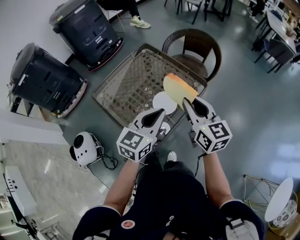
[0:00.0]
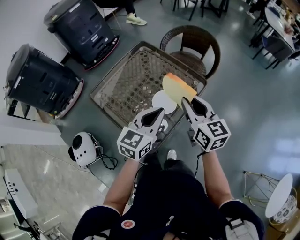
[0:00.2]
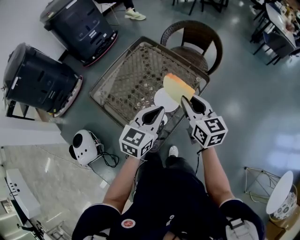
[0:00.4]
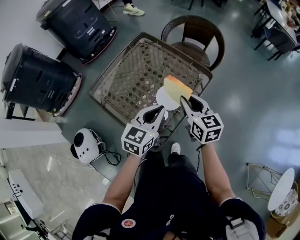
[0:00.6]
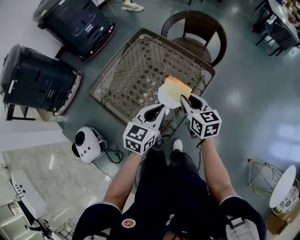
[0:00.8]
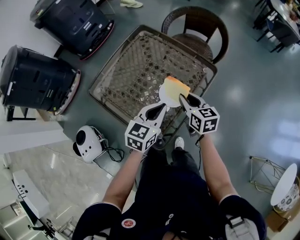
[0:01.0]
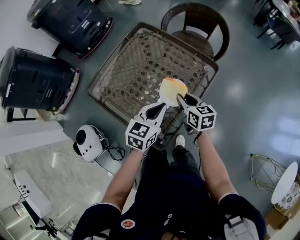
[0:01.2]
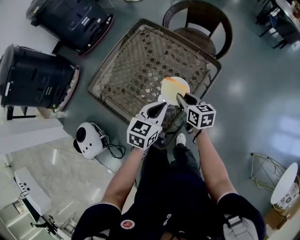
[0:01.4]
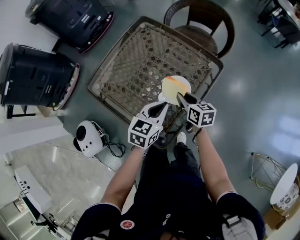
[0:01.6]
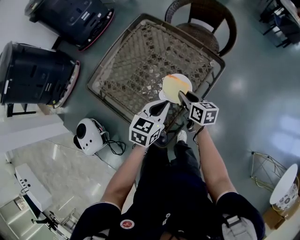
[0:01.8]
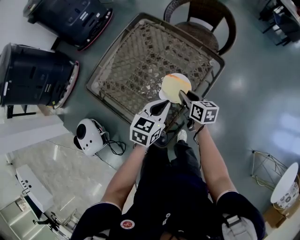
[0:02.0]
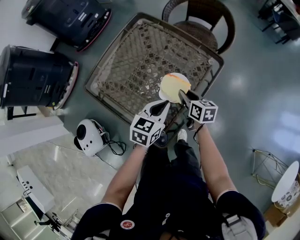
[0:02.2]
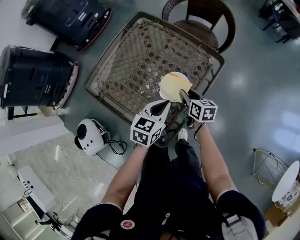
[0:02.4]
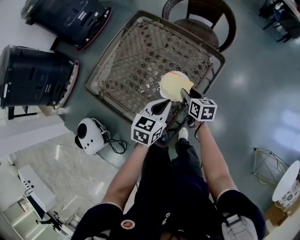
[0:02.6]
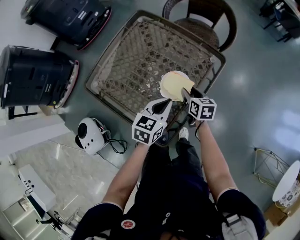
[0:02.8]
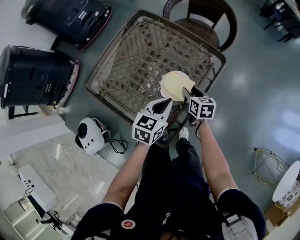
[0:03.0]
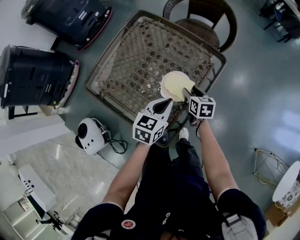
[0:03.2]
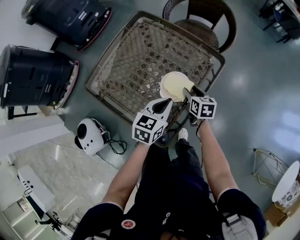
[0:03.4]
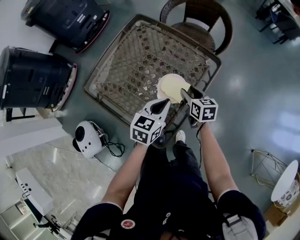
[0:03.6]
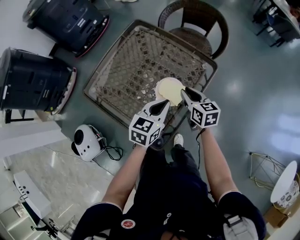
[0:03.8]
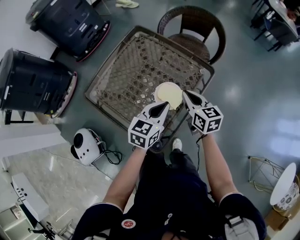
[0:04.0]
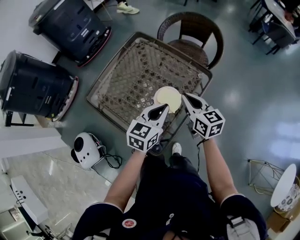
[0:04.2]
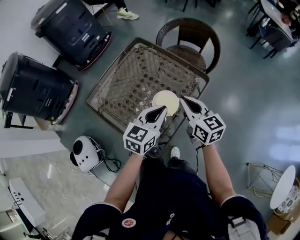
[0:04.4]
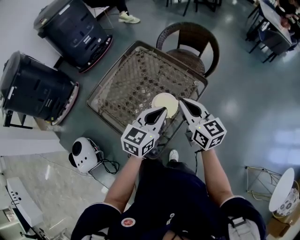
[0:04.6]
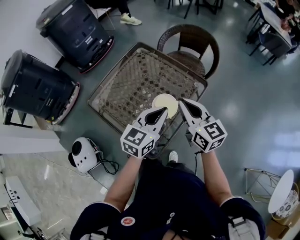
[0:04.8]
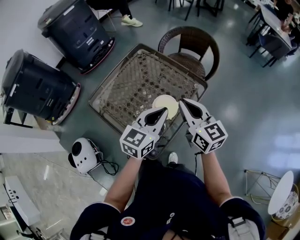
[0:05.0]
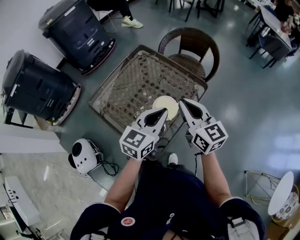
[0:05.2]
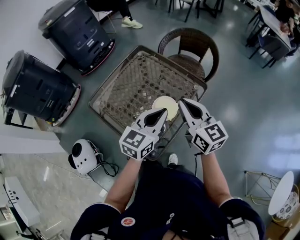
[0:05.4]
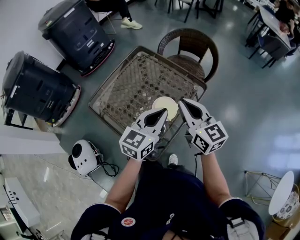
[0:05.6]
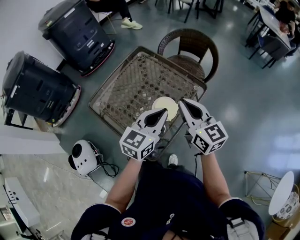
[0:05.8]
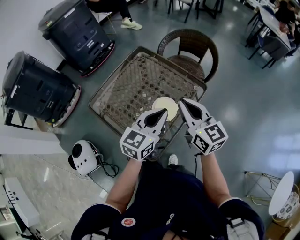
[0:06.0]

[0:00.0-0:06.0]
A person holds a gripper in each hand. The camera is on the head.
0:00.0 to 0:01.6: The left gripper shifts approximately 15 cm downward; the right gripper is displaced downward by about 25 cm, and rotates roughly 30 degrees.
0:01.6 to 0:03.0: The right gripper goes some 5 cm downward, and opens its fingers.
0:03.0 to 0:04.4: The left gripper goes about 10 cm upward; the right gripper goes approximately 25 cm upward, swivels approximately 30 degrees, and closes its fingers.
0:04.4 to 0:06.0: Both grippers move upward, about 10 cm.

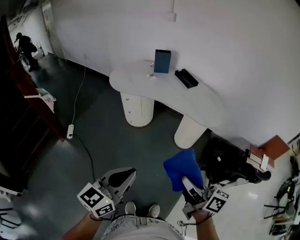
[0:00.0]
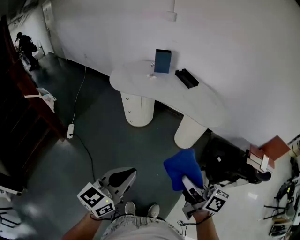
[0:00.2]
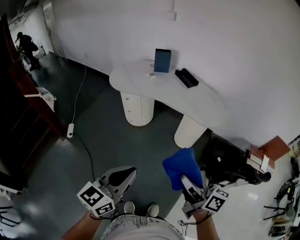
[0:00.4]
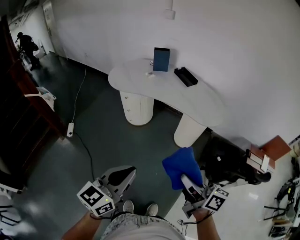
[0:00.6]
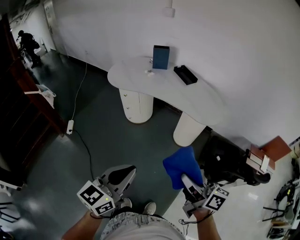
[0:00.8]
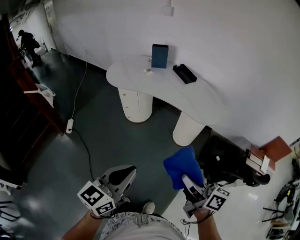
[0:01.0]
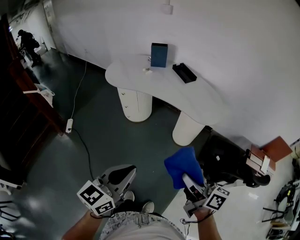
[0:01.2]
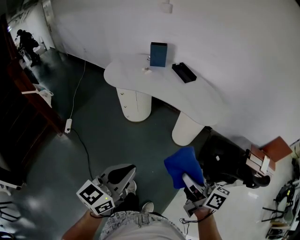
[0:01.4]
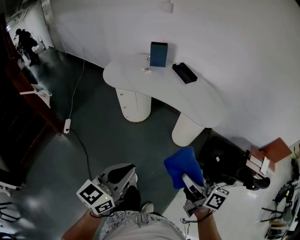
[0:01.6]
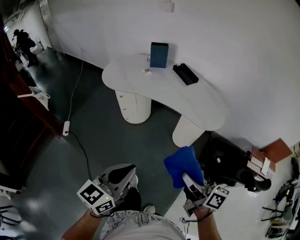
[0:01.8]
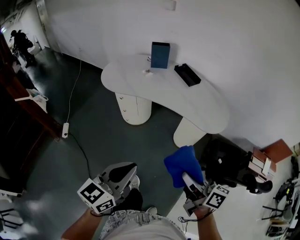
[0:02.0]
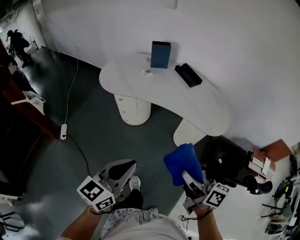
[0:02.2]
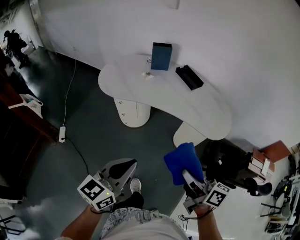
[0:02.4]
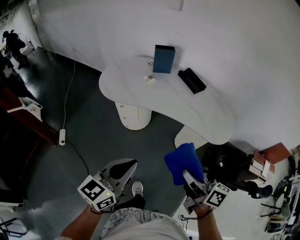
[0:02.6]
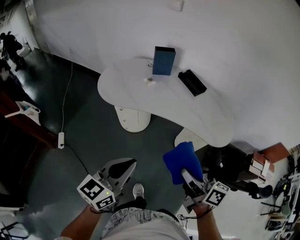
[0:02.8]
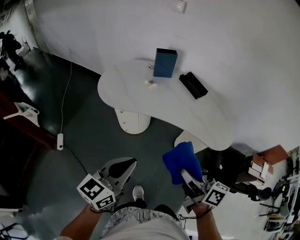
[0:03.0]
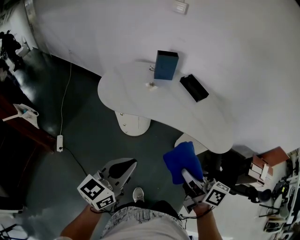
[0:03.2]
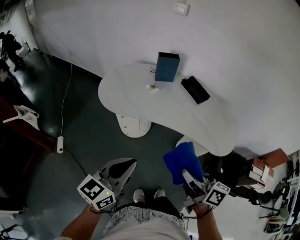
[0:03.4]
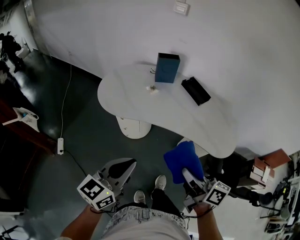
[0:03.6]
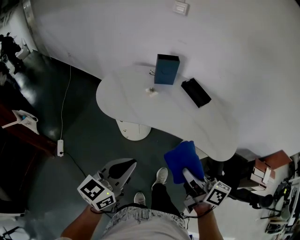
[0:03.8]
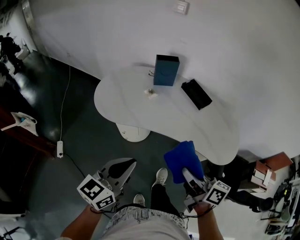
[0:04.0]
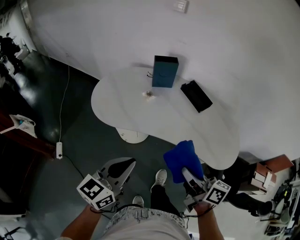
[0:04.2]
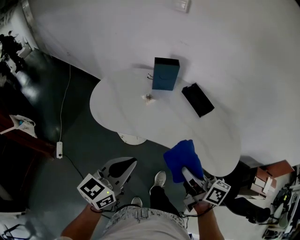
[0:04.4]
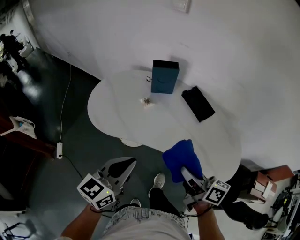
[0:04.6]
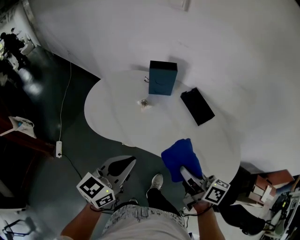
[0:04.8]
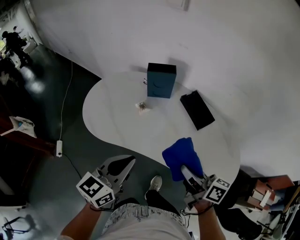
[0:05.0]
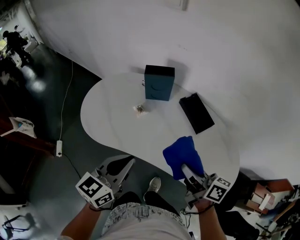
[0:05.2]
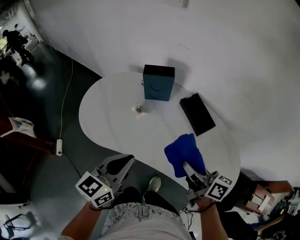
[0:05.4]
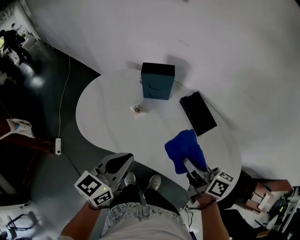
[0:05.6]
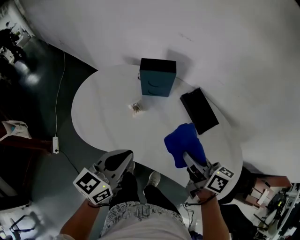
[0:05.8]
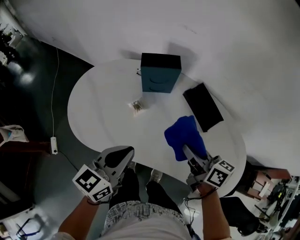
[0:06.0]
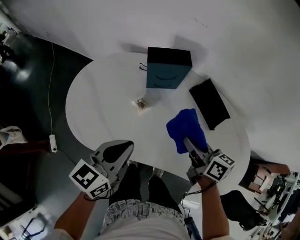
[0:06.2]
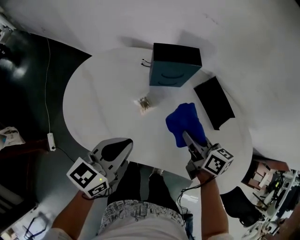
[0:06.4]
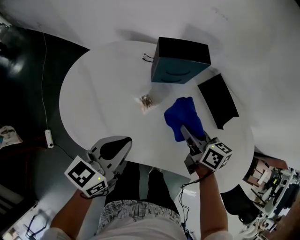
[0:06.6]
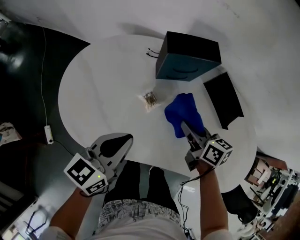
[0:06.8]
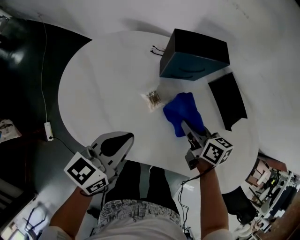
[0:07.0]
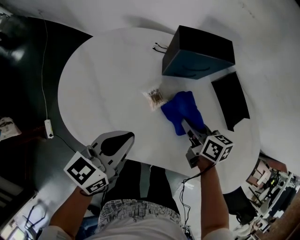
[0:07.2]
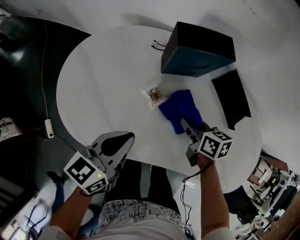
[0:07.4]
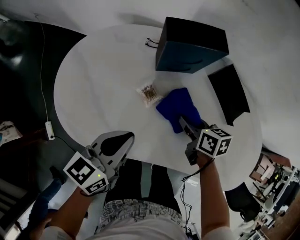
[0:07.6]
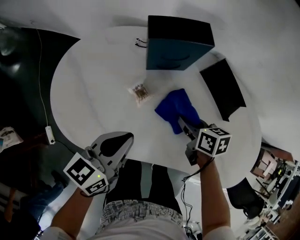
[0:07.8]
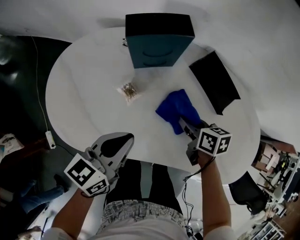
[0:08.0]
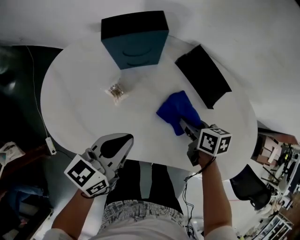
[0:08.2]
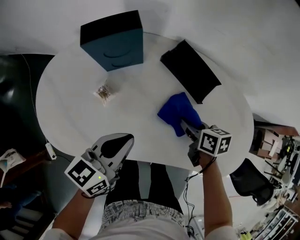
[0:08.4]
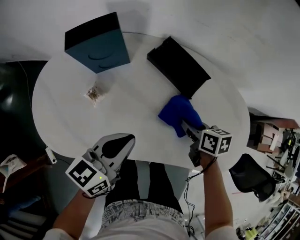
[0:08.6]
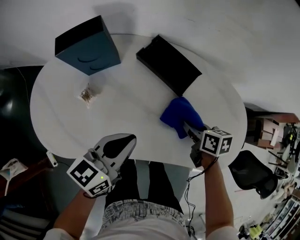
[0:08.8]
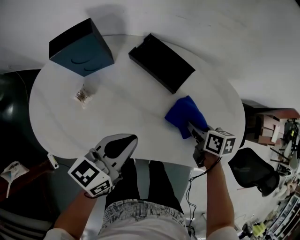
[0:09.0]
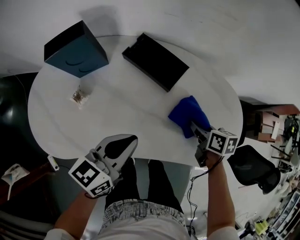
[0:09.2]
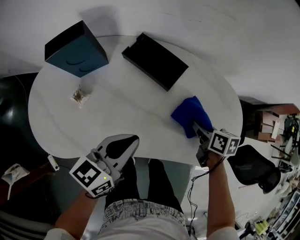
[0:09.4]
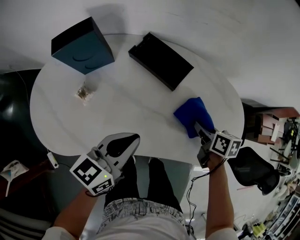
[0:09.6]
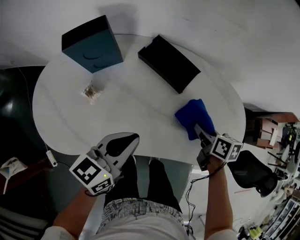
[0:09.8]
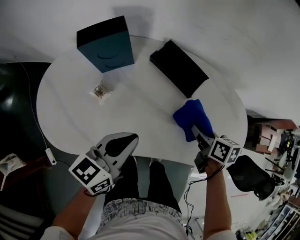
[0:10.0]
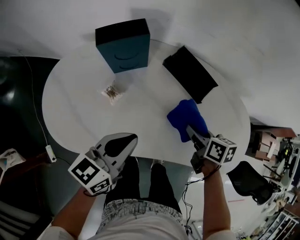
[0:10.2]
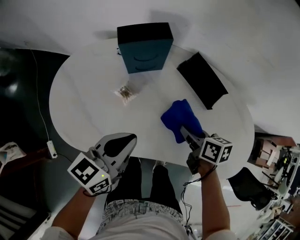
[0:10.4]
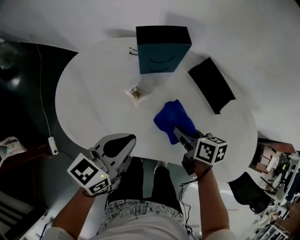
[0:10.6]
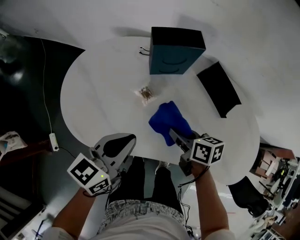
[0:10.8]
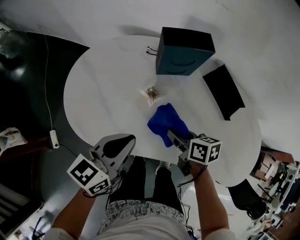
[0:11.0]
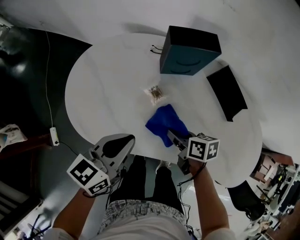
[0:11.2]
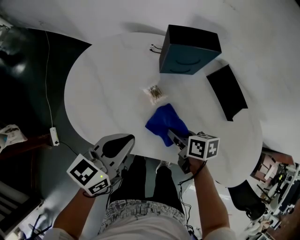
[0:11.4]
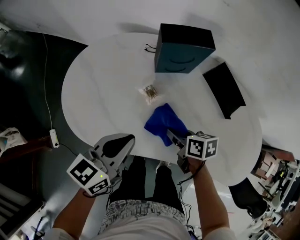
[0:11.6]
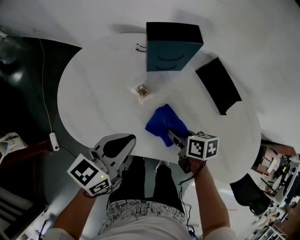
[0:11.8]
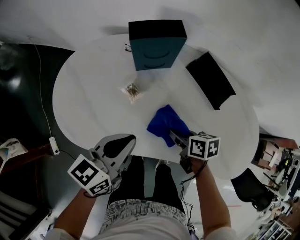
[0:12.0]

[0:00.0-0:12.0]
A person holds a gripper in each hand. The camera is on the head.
0:00.0 to 0:01.6: Both grippers travel together to the right and forward, approximately 10 cm.
0:01.6 to 0:03.0: The two grippers go about 25 cm forward and to the left.
0:03.0 to 0:04.4: Both grippers travel together forward, about 20 cm.
0:04.4 to 0:06.0: Both grippers move forward, about 25 cm.
0:06.0 to 0:07.6: The left gripper moves downward, forward and to the left, roughly 15 cm; the right gripper travels downward, forward and to the left by roughly 20 cm, and swivels some 30 degrees.
0:07.6 to 0:09.0: The two grippers go about 25 cm to the right. The right gripper turns by approximately 20 degrees.
0:09.0 to 0:10.4: The two grippers go roughly 15 cm to the left.
0:10.4 to 0:12.0: The right gripper goes some 10 cm to the left and downward. The left gripper travels to the left and back again, some 10 cm each way.

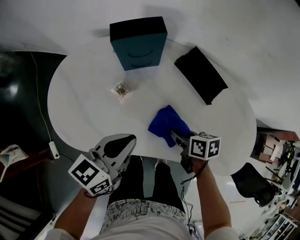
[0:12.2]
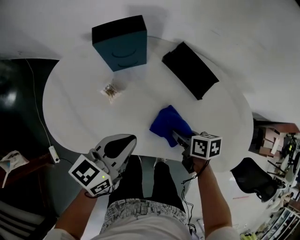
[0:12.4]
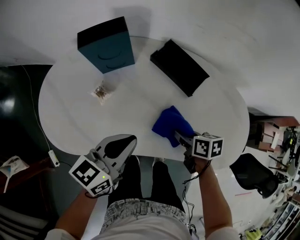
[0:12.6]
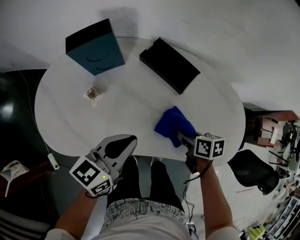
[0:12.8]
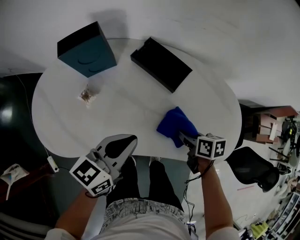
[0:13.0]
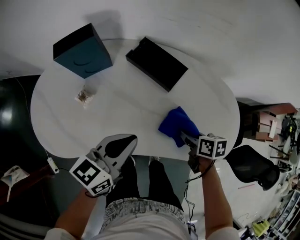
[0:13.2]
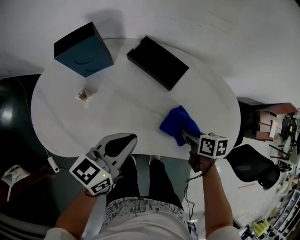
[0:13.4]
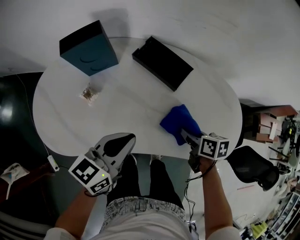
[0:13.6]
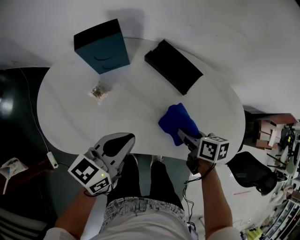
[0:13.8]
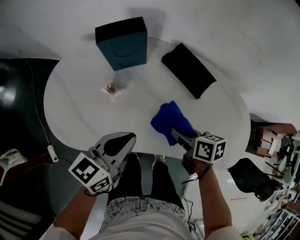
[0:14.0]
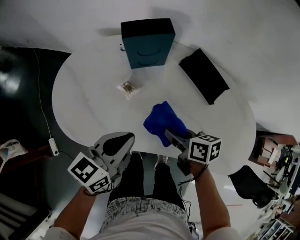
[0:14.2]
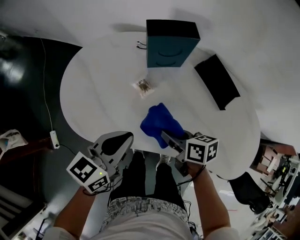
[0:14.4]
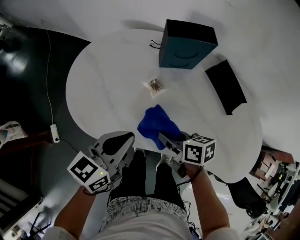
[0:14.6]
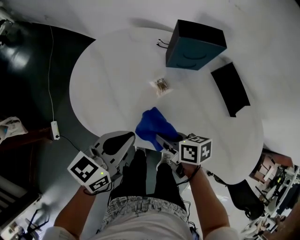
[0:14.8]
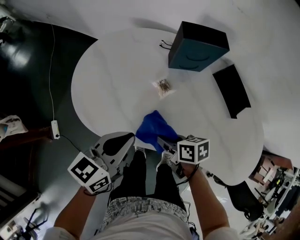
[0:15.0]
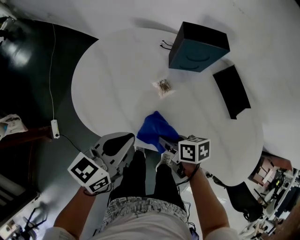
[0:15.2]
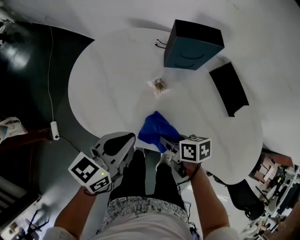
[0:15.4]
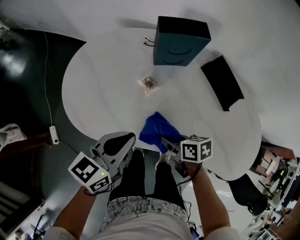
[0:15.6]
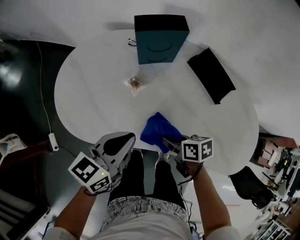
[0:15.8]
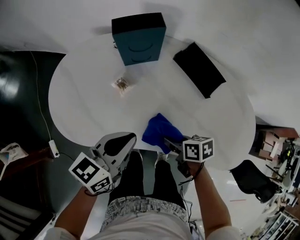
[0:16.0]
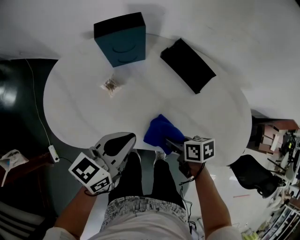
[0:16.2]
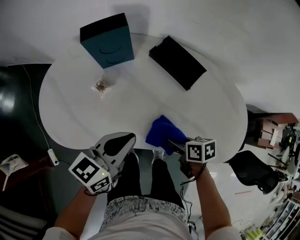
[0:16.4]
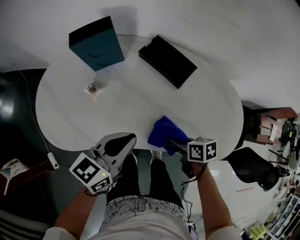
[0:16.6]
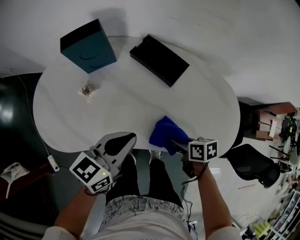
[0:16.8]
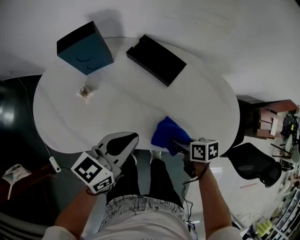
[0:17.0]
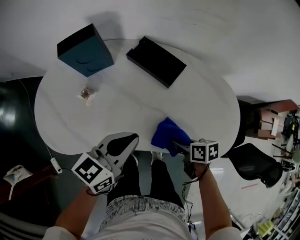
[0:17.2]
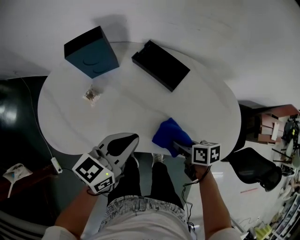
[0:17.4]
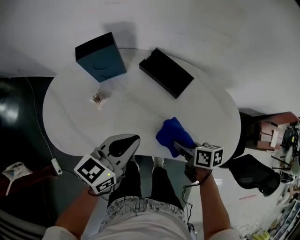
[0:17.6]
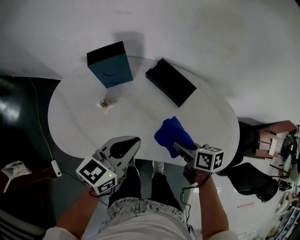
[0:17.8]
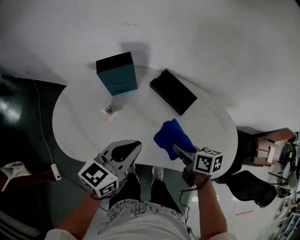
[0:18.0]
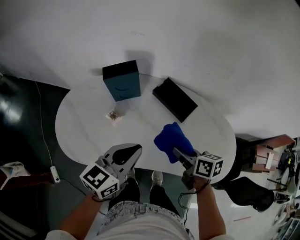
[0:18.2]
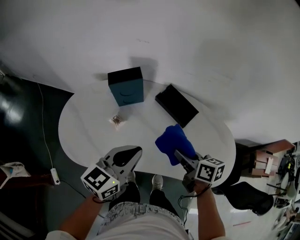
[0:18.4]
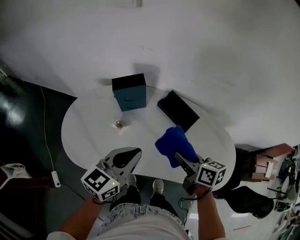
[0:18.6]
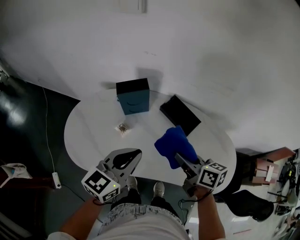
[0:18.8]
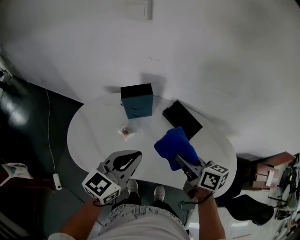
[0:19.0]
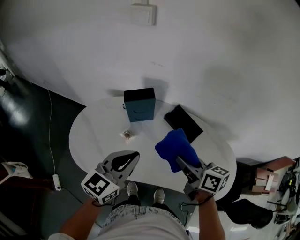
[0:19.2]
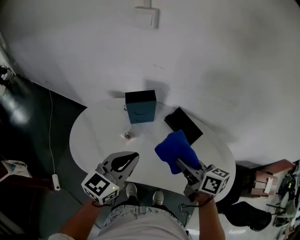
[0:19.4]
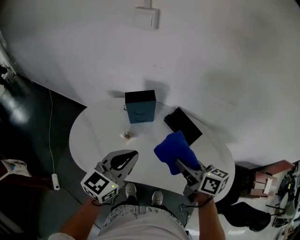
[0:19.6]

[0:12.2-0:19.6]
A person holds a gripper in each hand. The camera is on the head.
0:12.2 to 0:13.6: The two grippers go about 15 cm to the right.
0:13.6 to 0:15.2: The right gripper moves some 35 cm, and turns by approximately 30 degrees; the left gripper changes place by approximately 25 cm, and swivels roughly 20 degrees.
0:15.2 to 0:16.6: The left gripper goes about 25 cm to the right, and changes its angle by some 20 degrees, while the right gripper shifts roughly 25 cm to the right and backward, and turns by approximately 20 degrees.
0:16.6 to 0:18.2: The left gripper is displaced upward by approximately 10 cm. Meanwhile the right gripper heads upward and forward, covering some 15 cm, and turns by about 20 degrees.
0:18.2 to 0:19.6: The left gripper is displaced upward and to the left by roughly 10 cm. Meanwhile the right gripper moves upward, about 15 cm.
